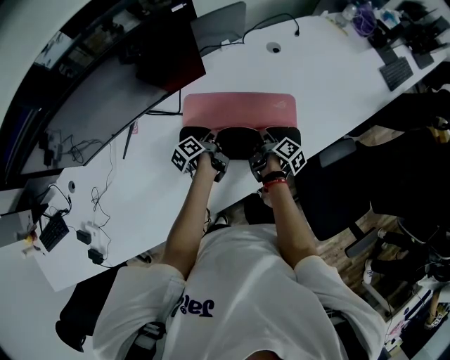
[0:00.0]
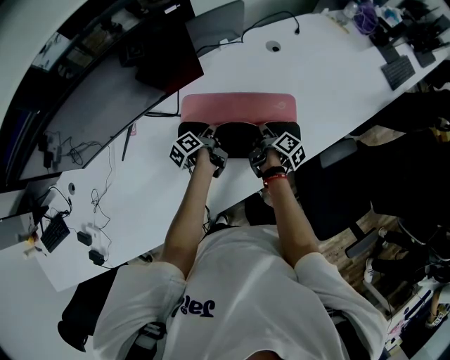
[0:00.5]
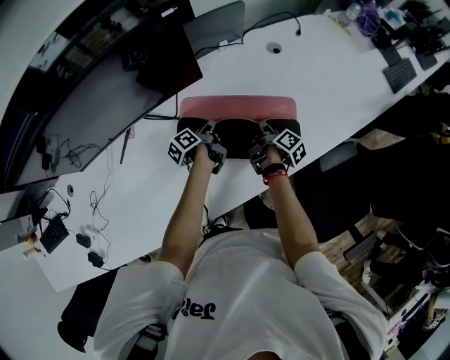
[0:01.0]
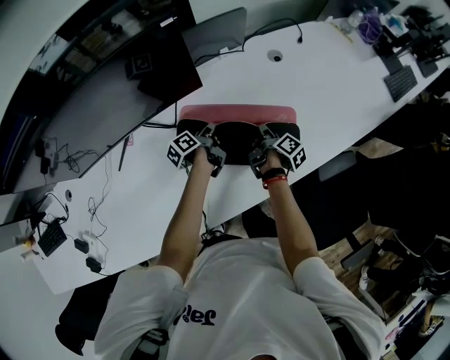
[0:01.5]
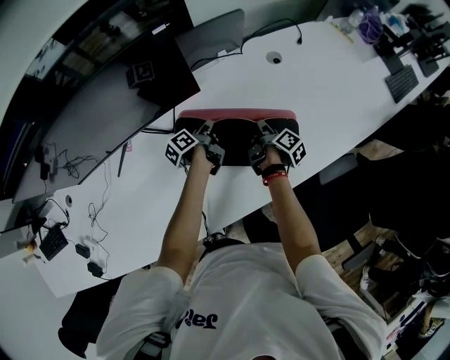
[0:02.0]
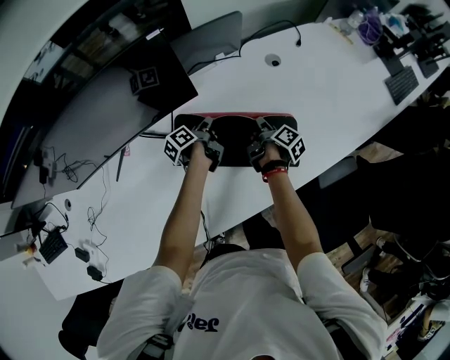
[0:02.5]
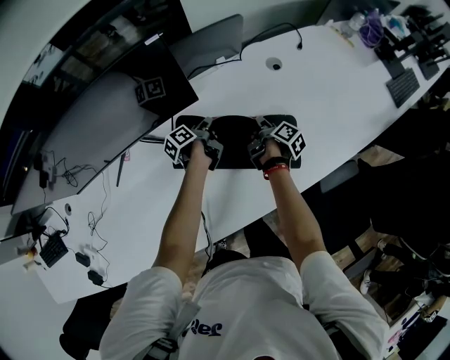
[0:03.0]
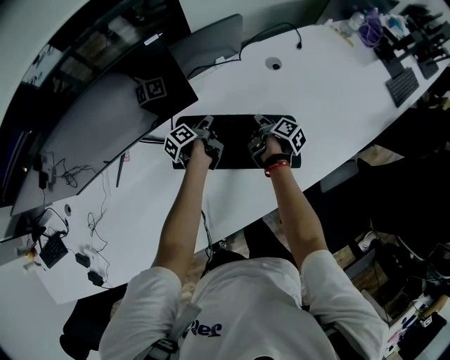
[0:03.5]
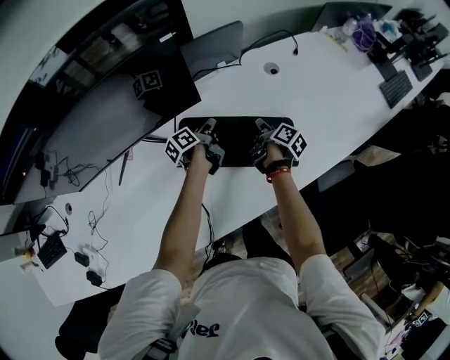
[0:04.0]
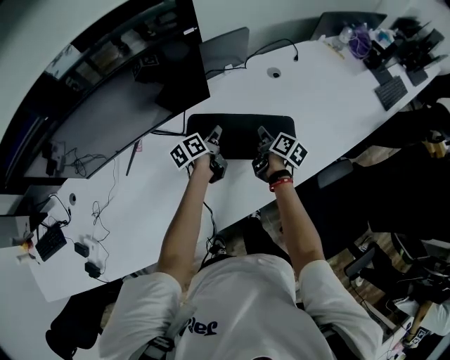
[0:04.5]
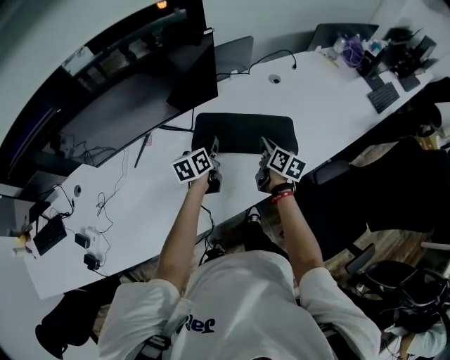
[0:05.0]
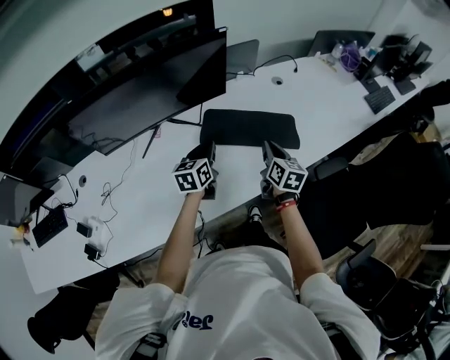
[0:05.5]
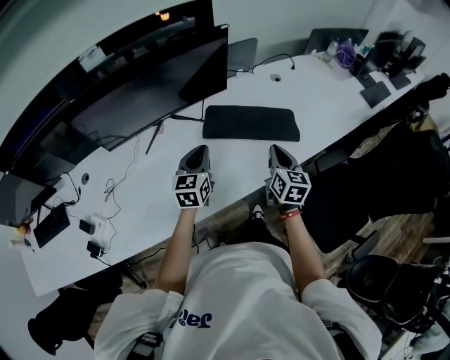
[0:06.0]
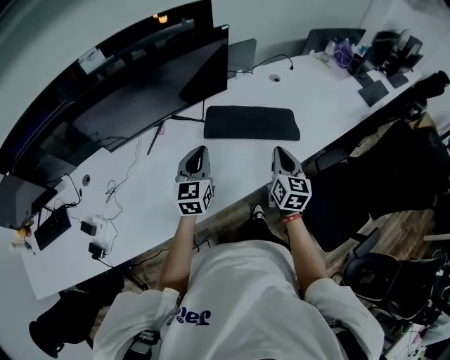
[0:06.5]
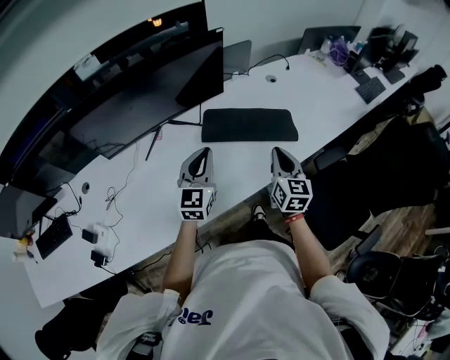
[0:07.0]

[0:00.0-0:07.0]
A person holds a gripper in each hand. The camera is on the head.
0:00.0 to 0:02.0: Both grippers travel together forward, roughly 10 cm.
0:02.0 to 0:03.5: Both grippers travel together forward, some 5 cm.
0:03.5 to 0:05.0: The grippers both shift backward and upward by roughly 25 cm. The right gripper turns by roughly 40 degrees, while the left gripper twists about 50 degrees clockwise, seen from behind.
0:05.0 to 0:07.0: Both grippers move backward and upward, about 20 cm. The left gripper rolls clockwise, seen from behind, by roughly 40 degrees. The right gripper rotates about 40 degrees.

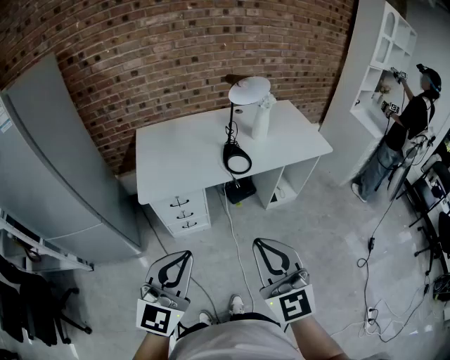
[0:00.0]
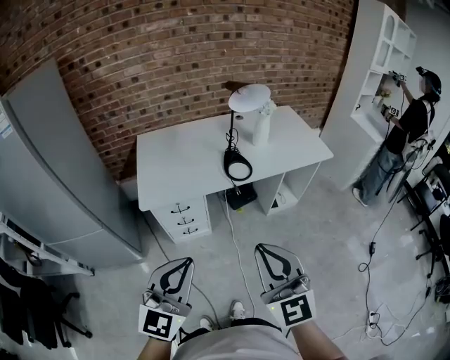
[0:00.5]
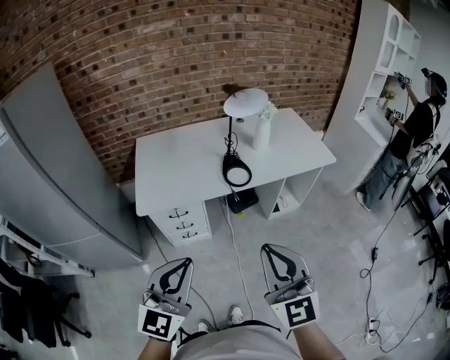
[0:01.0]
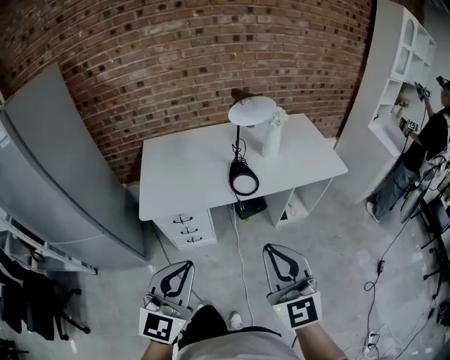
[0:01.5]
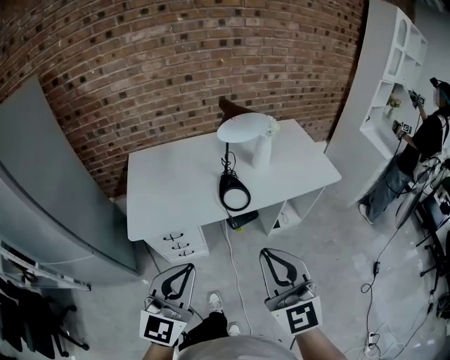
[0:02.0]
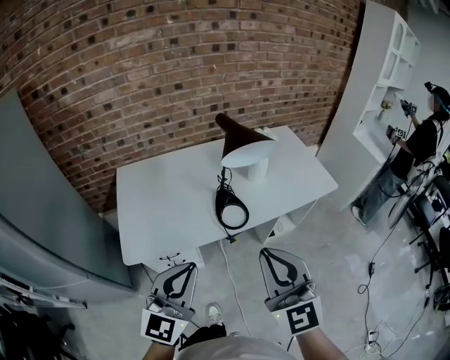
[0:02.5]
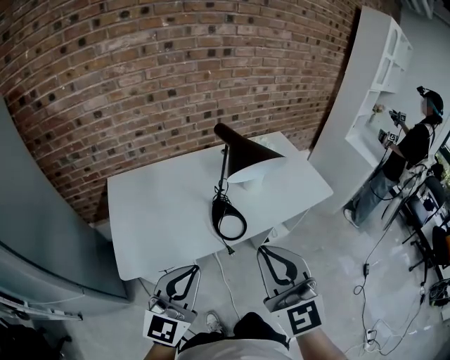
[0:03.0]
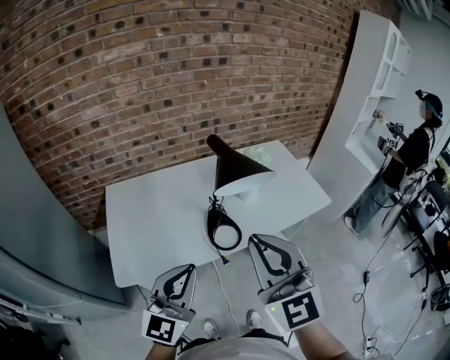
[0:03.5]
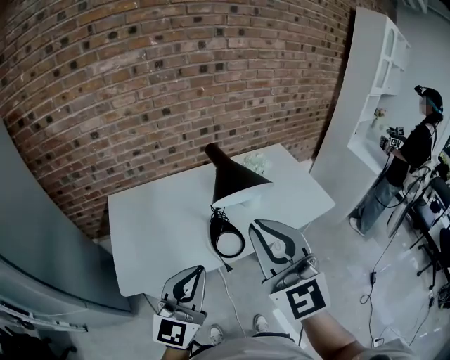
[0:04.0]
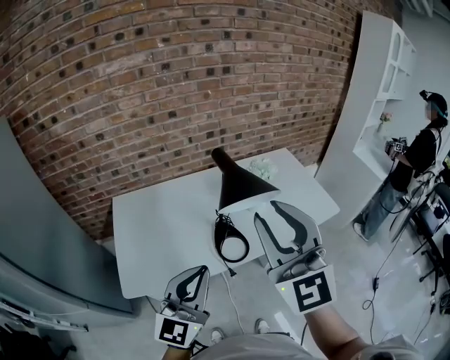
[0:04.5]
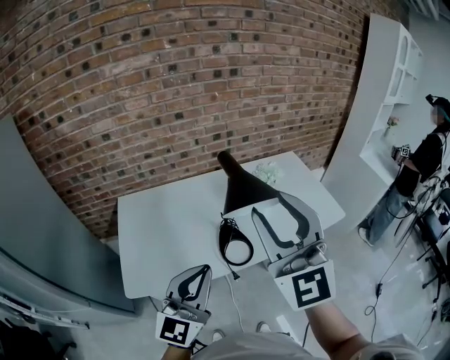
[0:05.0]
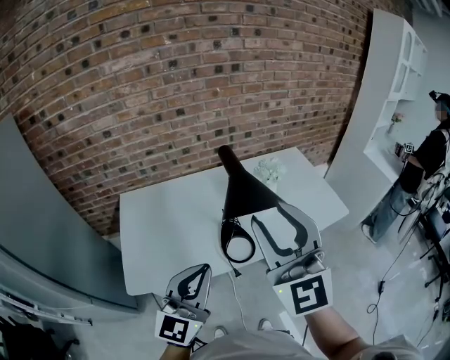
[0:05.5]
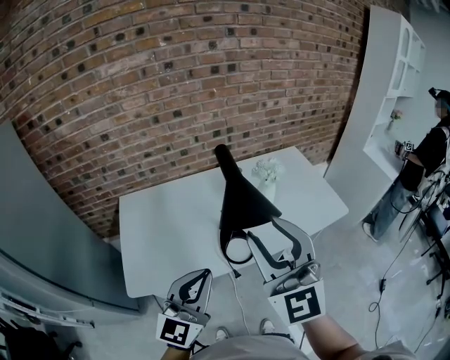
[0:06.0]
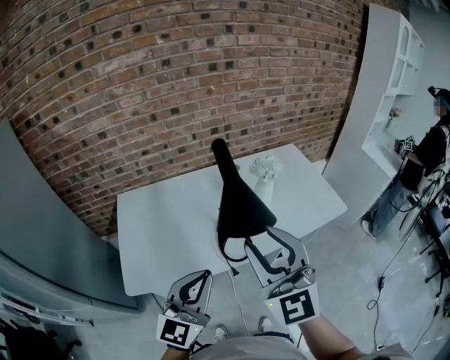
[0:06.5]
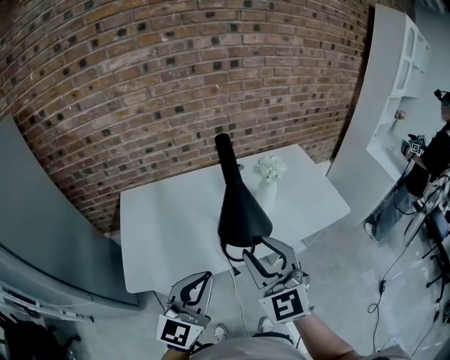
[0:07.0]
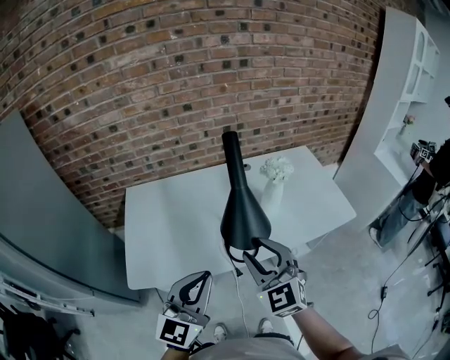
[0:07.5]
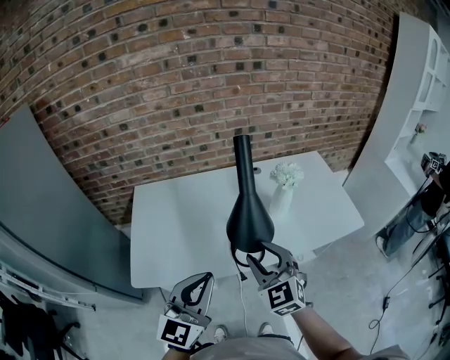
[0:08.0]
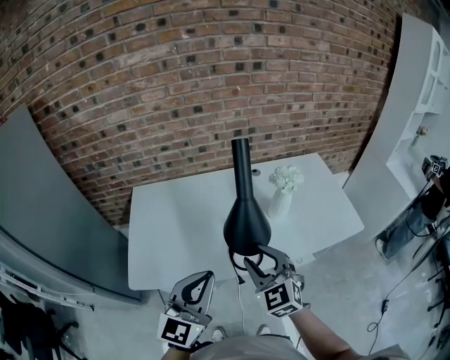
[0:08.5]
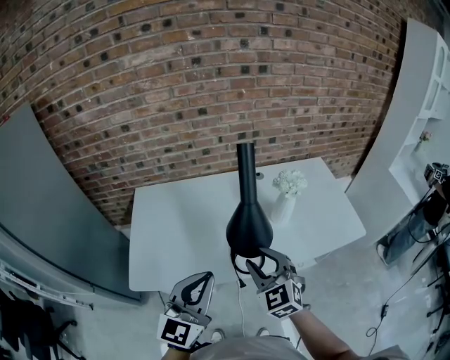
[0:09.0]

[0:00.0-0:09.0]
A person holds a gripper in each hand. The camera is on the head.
0:00.0 to 0:02.0: The two grippers go approximately 15 cm forward.
0:02.0 to 0:04.5: The right gripper goes approximately 25 cm forward and upward, and opens, while the left gripper heads forward, covering roughly 20 cm.
0:04.5 to 0:07.0: The right gripper shifts about 15 cm downward.
0:07.0 to 0:09.0: The right gripper shifts approximately 15 cm downward and forward.

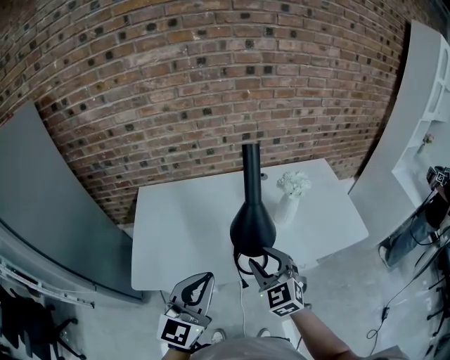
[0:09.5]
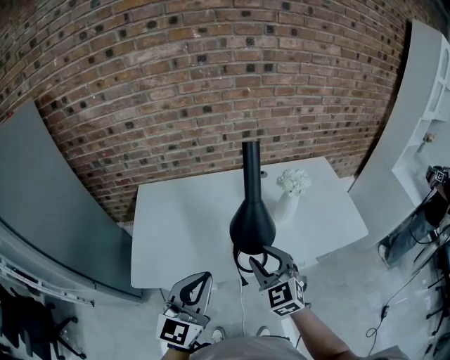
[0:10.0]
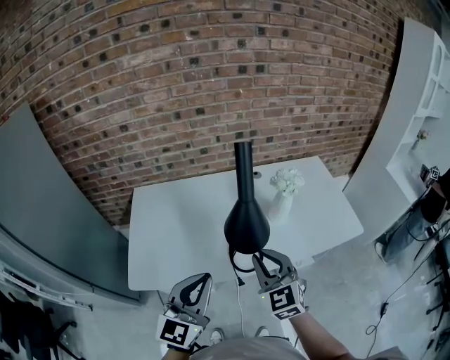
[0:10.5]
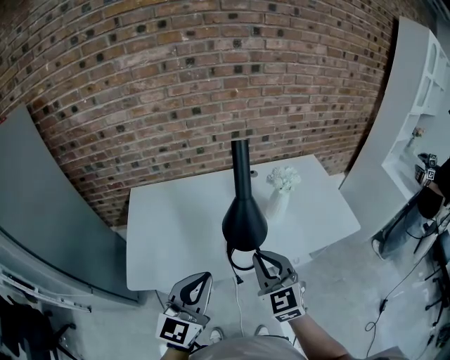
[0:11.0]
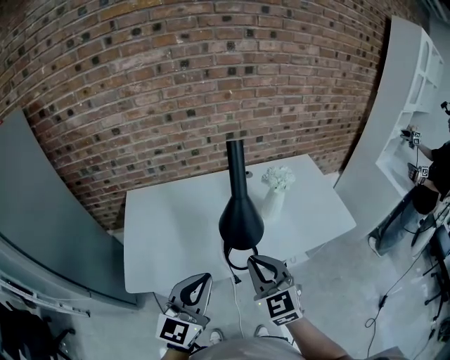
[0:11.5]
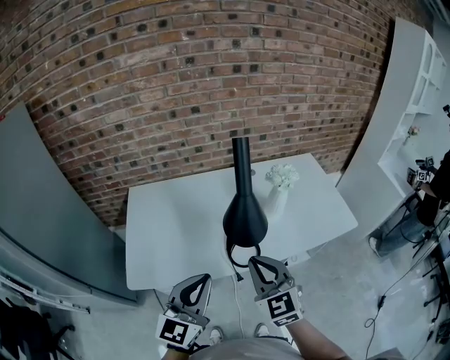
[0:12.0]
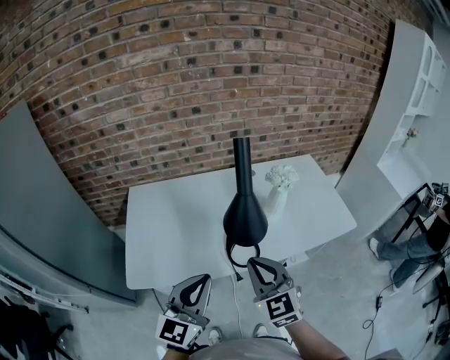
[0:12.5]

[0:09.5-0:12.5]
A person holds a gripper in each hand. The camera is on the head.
0:09.5 to 0:11.0: The right gripper closes up.
0:11.0 to 0:12.5: The grippers move only a little.

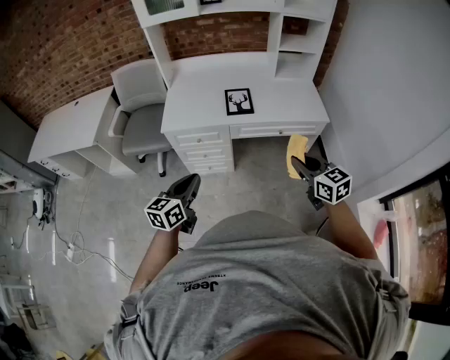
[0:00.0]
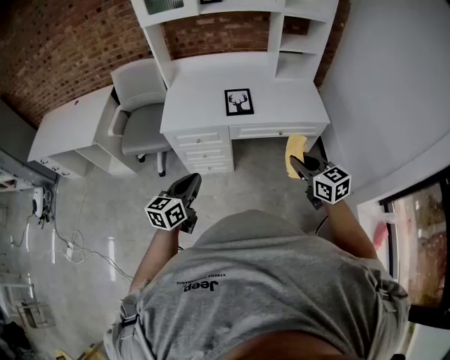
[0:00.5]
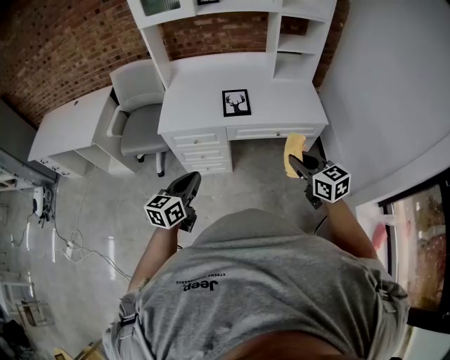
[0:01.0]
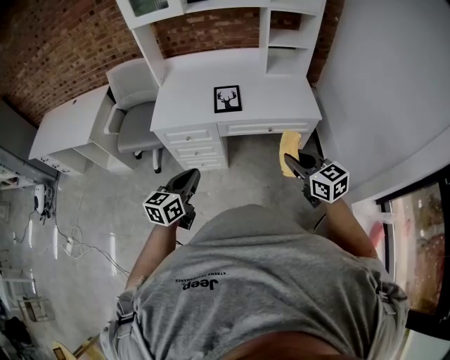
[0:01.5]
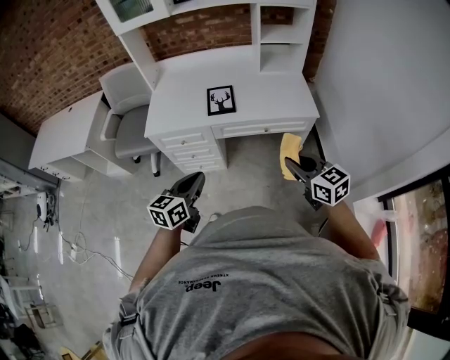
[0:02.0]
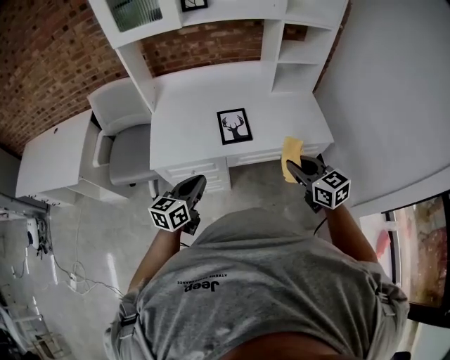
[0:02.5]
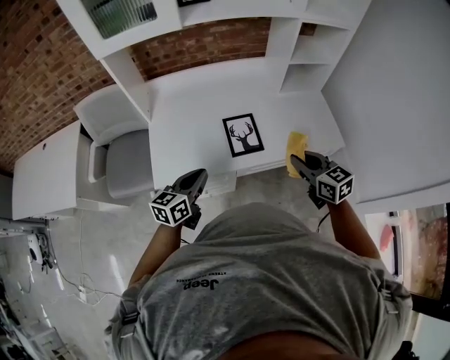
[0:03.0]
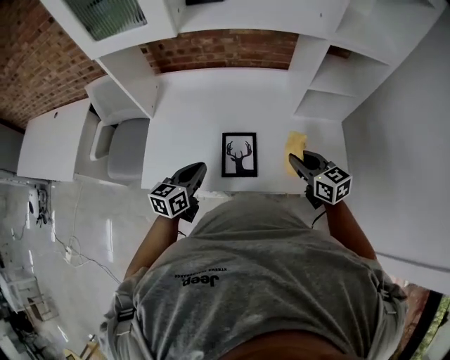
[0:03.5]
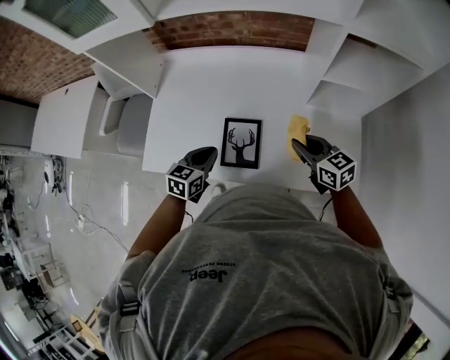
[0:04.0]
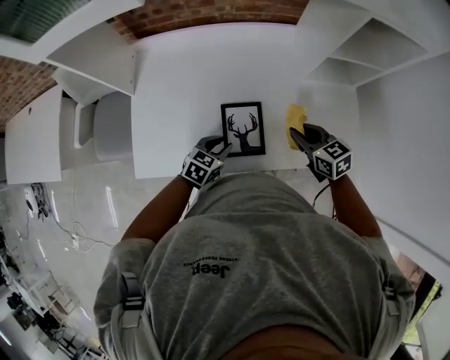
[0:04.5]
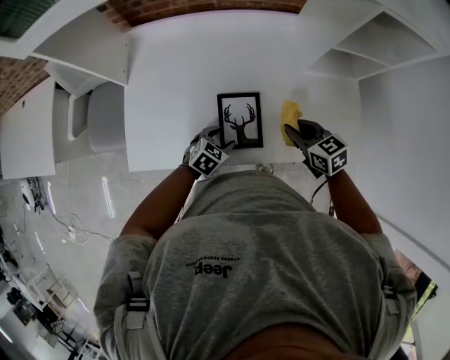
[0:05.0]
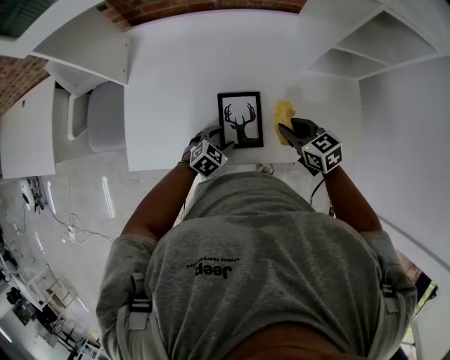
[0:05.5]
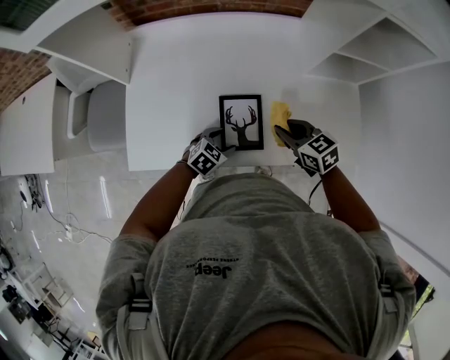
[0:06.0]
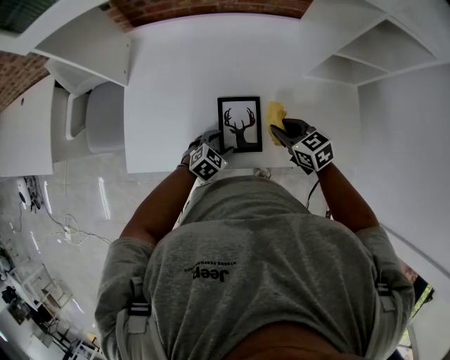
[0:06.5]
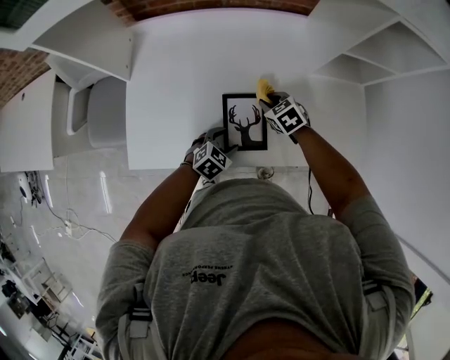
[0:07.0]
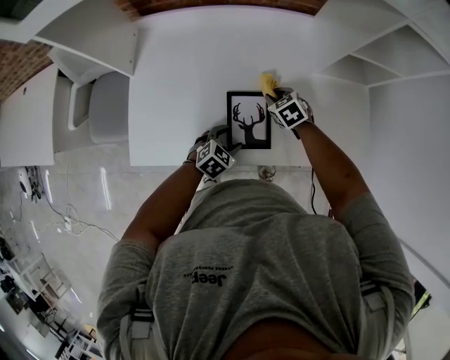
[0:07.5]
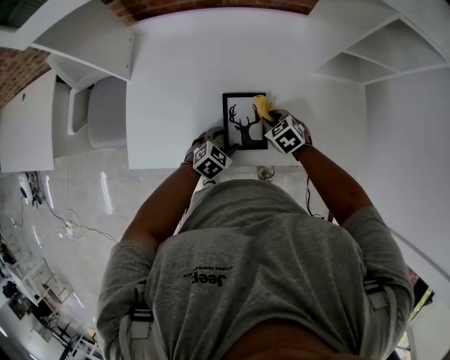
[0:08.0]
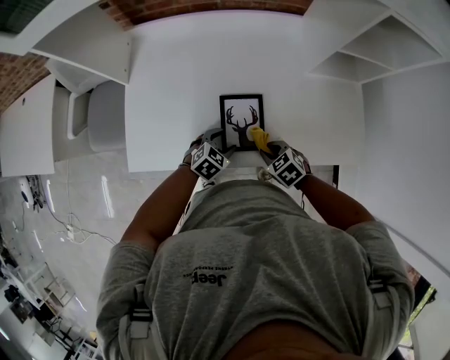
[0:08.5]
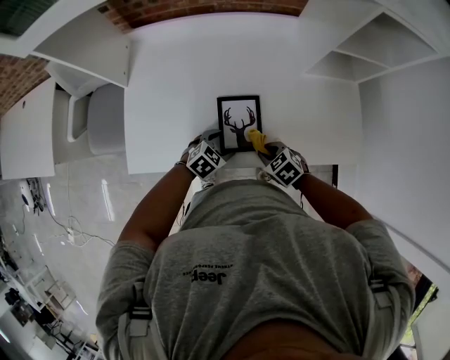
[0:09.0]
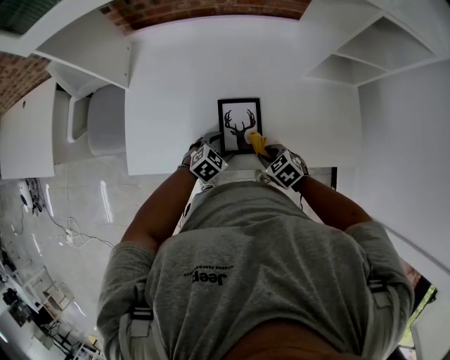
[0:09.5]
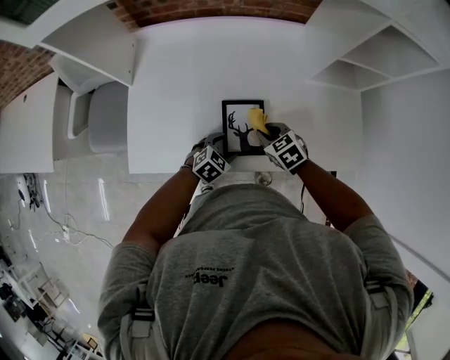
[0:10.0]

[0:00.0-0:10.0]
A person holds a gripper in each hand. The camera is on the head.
0:00.0 to 0:02.0: The right gripper shifts approximately 10 cm to the right. Meanwhile the left gripper heads to the right, covering about 15 cm.
0:02.0 to 0:04.0: The pair of grippers is taken forward, approximately 50 cm. The left gripper turns by some 20 degrees.
0:04.0 to 0:06.0: The right gripper moves to the left and downward, some 10 cm. Meanwhile the left gripper travels downward by approximately 15 cm, swivels some 40 degrees, and opens.
0:06.0 to 0:08.0: The right gripper goes some 10 cm downward, and swivels some 30 degrees.
0:08.0 to 0:10.0: The right gripper goes backward and returns, some 10 cm each way.
